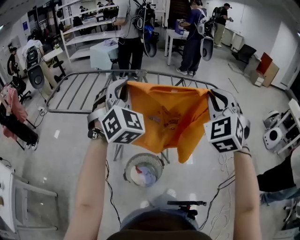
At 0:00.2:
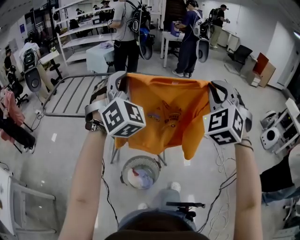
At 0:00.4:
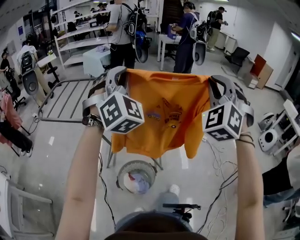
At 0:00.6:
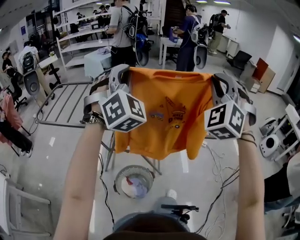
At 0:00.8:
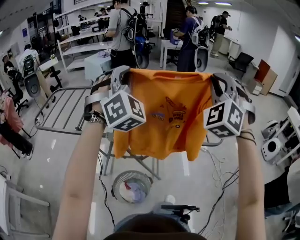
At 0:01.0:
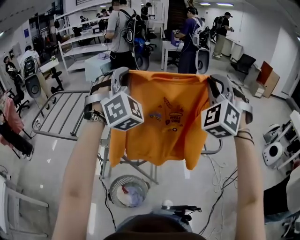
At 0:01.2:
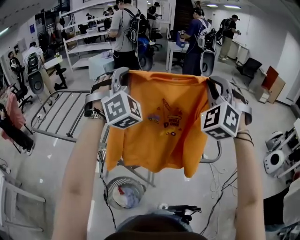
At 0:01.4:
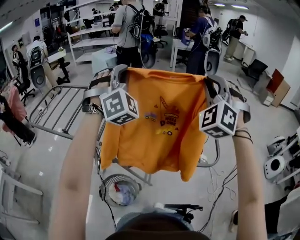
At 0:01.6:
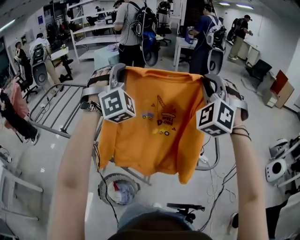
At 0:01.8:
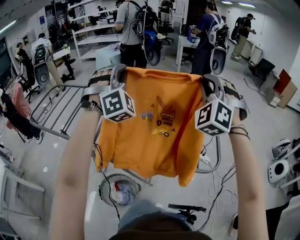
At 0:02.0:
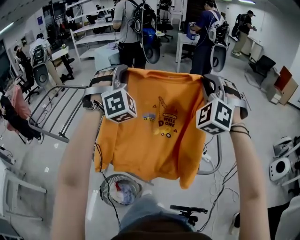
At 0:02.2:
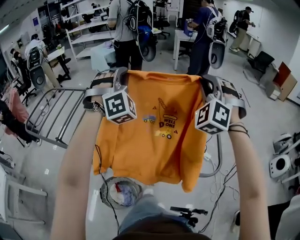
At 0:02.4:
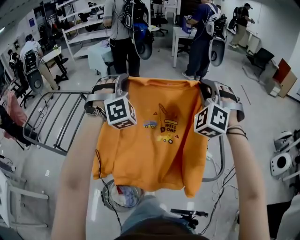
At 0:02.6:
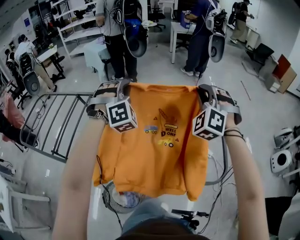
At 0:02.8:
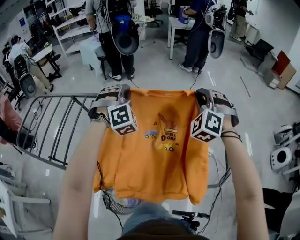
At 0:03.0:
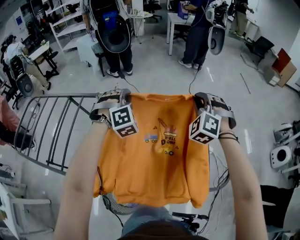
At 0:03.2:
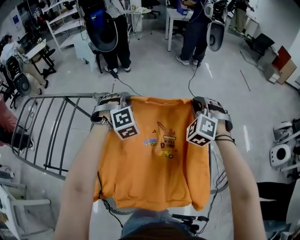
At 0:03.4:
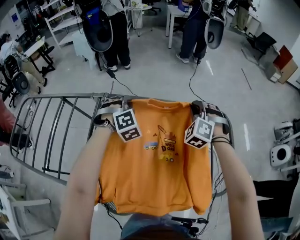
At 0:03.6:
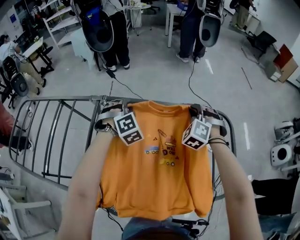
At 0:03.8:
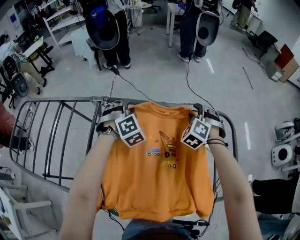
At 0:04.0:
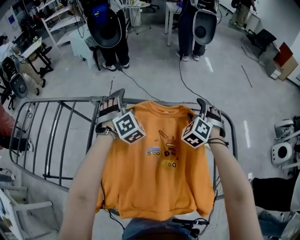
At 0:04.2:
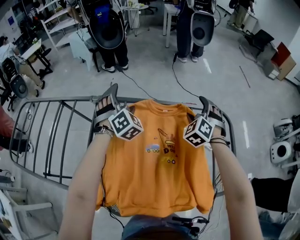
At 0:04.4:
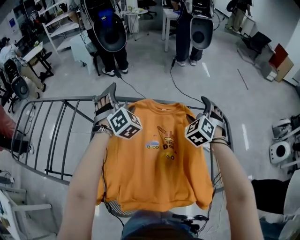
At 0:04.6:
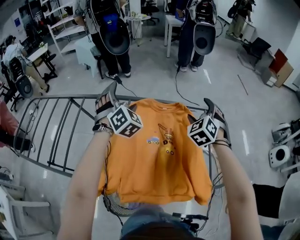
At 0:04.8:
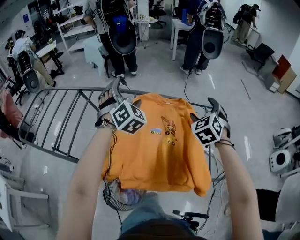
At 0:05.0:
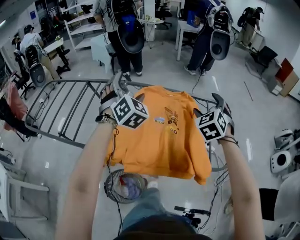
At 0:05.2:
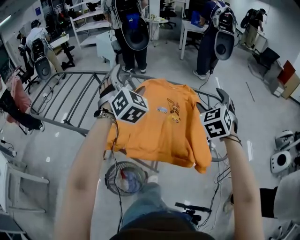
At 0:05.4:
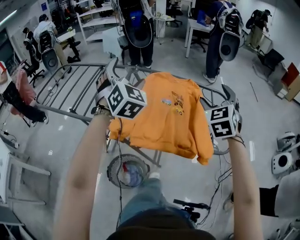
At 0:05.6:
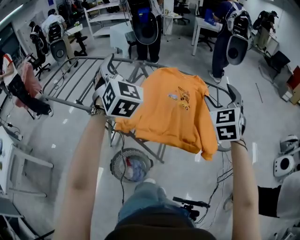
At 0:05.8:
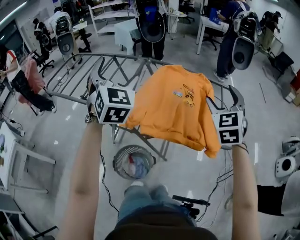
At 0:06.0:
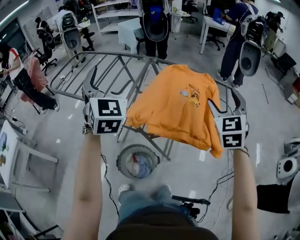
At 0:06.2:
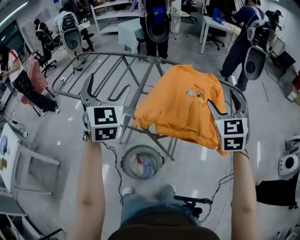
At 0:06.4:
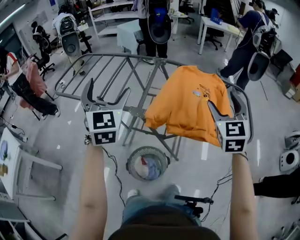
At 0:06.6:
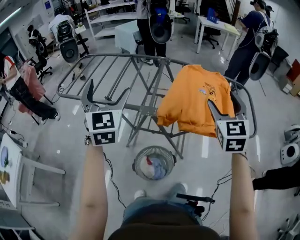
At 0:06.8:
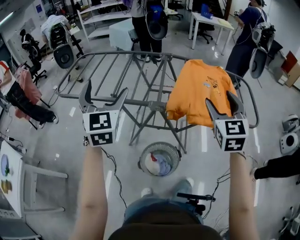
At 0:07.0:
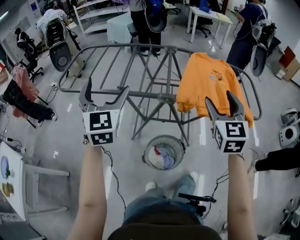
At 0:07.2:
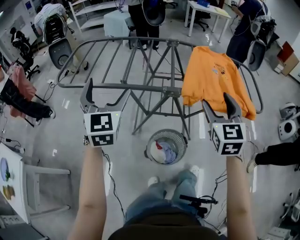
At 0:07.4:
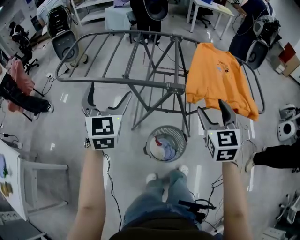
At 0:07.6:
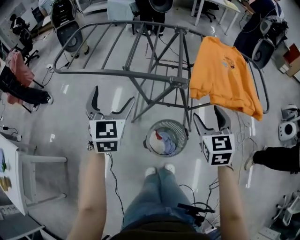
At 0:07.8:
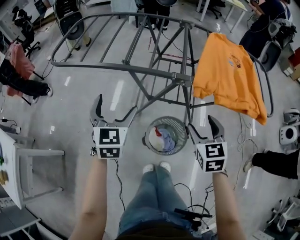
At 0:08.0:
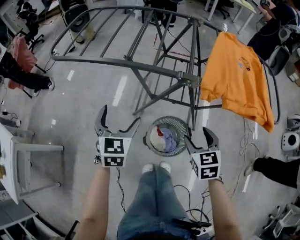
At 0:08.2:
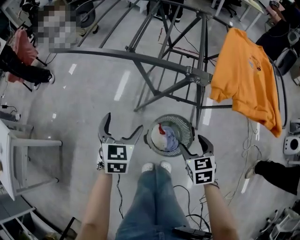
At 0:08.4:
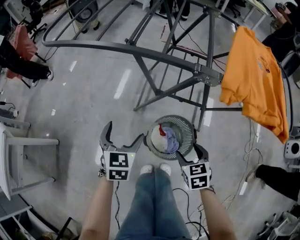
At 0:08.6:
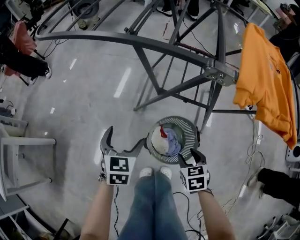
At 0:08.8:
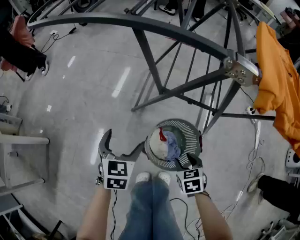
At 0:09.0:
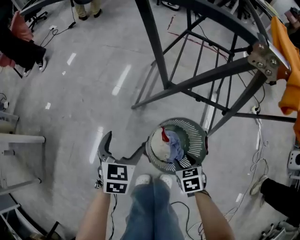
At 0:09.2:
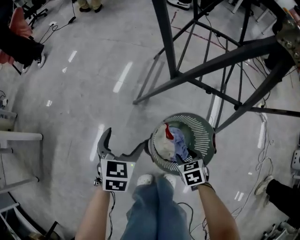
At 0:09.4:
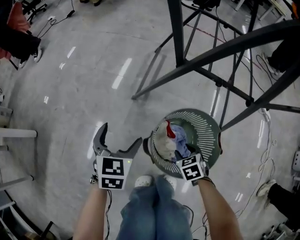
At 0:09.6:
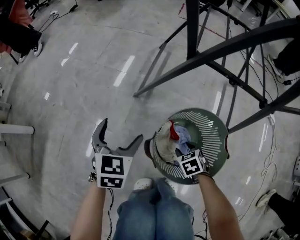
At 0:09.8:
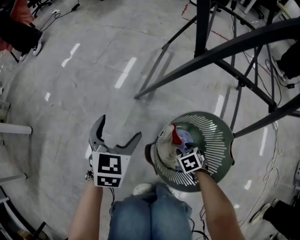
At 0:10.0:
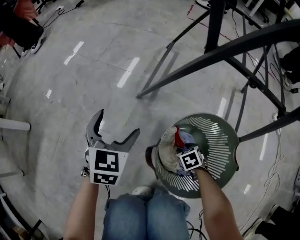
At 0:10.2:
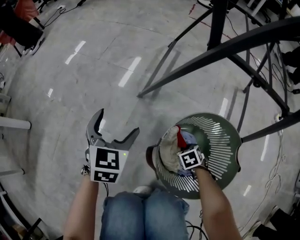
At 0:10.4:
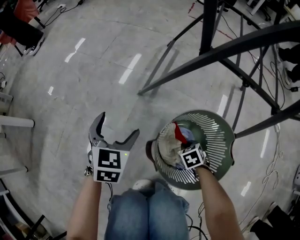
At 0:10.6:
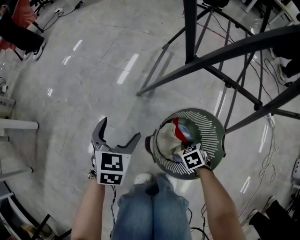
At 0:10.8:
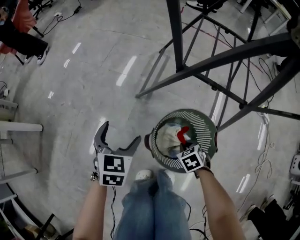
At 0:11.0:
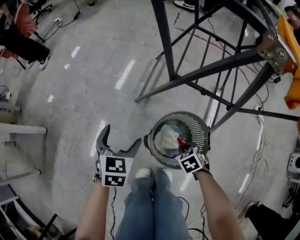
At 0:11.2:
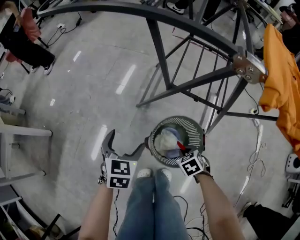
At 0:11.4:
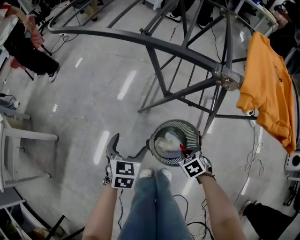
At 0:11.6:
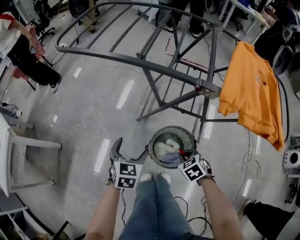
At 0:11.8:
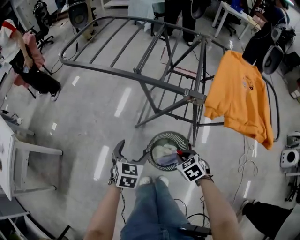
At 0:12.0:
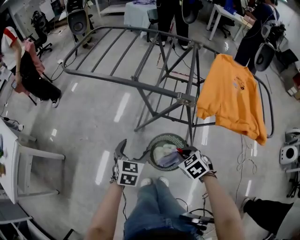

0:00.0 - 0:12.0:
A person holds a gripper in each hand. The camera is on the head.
0:00.0 - 0:01.6: The two grippers go approximately 35 cm forward and to the right. The left gripper swivels approximately 30 degrees. The right gripper turns by about 20 degrees.
0:01.6 - 0:03.0: Both grippers move downward and forward, roughly 30 cm. The left gripper tilts its fingers some 30 degrees downward, while the right gripper changes its angle by some 20 degrees.
0:03.0 - 0:04.4: The right gripper travels downward by approximately 10 cm, turns by some 20 degrees, and opens up; the left gripper goes downward and returns, approximately 10 cm each way, swivels about 20 degrees, and opens its fingers.
0:04.4 - 0:06.0: The right gripper goes approximately 35 cm backward and upward, and changes its angle by some 30 degrees. Meanwhile the left gripper shifts about 50 cm backward, upward and to the left, and swivels roughly 40 degrees.
0:06.0 - 0:07.6: The right gripper shifts approximately 40 cm to the left, downward and backward, and changes its angle by some 20 degrees. Meanwhile the left gripper moves to the left and downward, some 35 cm, and rotates some 20 degrees.
0:07.6 - 0:09.0: Both grippers travel together downward, approximately 50 cm. The left gripper turns by roughly 30 degrees, while the right gripper tilts its fingers roughly 40 degrees downward.
0:09.0 - 0:10.4: The left gripper travels downward by some 20 cm. The right gripper moves downward, roughly 30 cm, and closes its fingers.
0:10.4 - 0:12.0: Both grippers travel together upward, about 50 cm.

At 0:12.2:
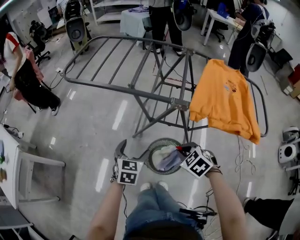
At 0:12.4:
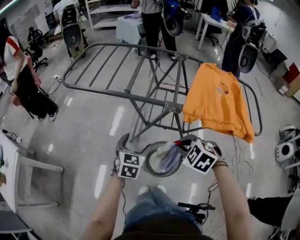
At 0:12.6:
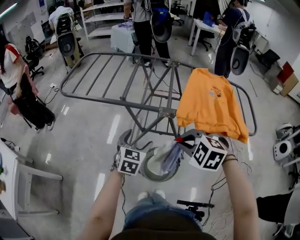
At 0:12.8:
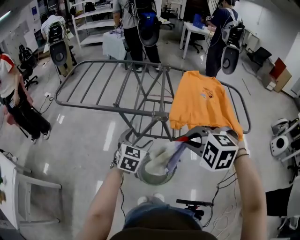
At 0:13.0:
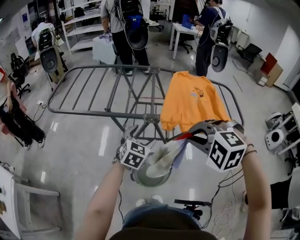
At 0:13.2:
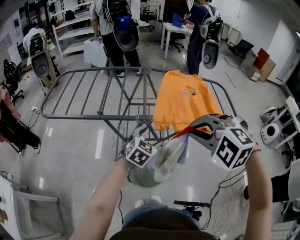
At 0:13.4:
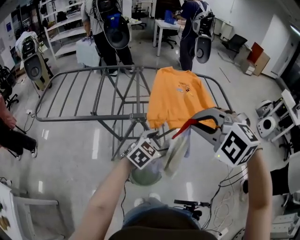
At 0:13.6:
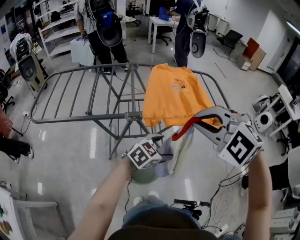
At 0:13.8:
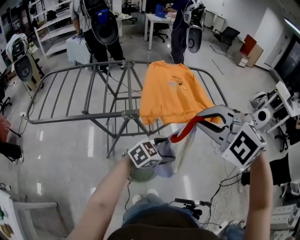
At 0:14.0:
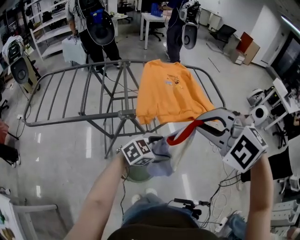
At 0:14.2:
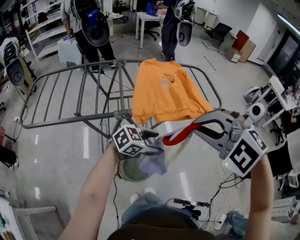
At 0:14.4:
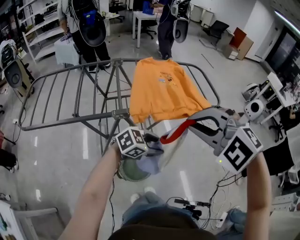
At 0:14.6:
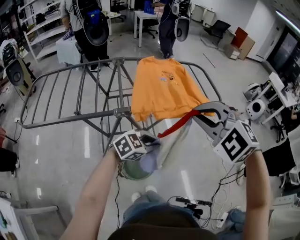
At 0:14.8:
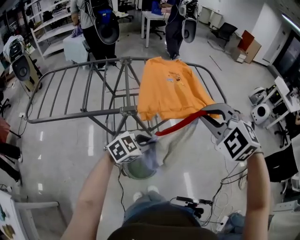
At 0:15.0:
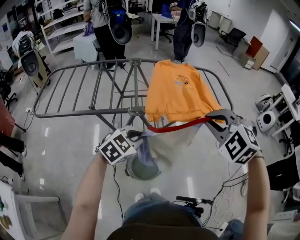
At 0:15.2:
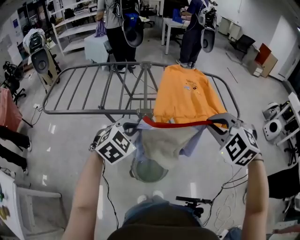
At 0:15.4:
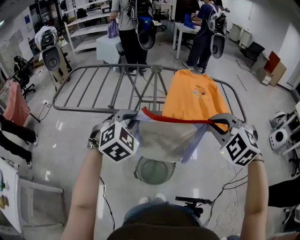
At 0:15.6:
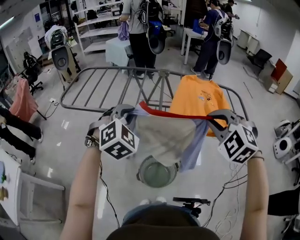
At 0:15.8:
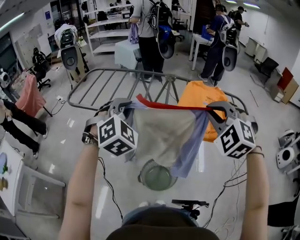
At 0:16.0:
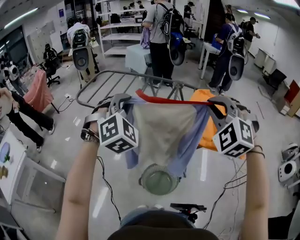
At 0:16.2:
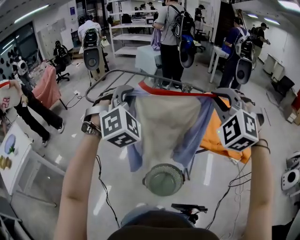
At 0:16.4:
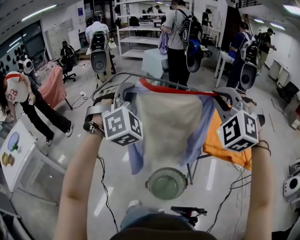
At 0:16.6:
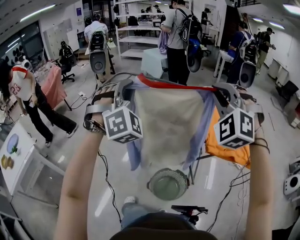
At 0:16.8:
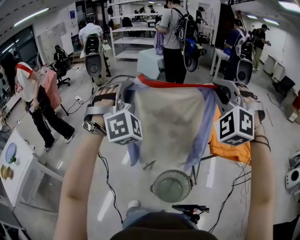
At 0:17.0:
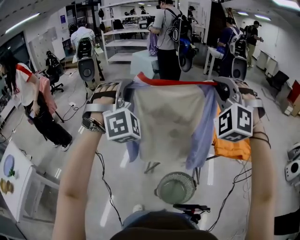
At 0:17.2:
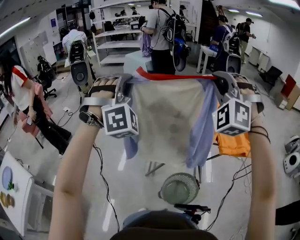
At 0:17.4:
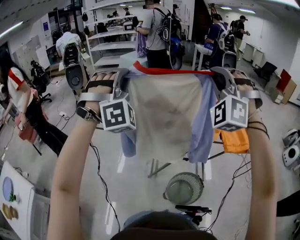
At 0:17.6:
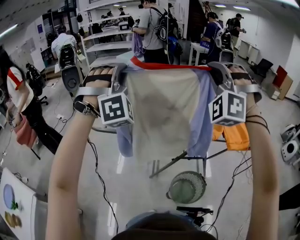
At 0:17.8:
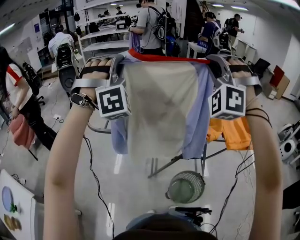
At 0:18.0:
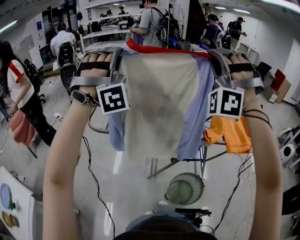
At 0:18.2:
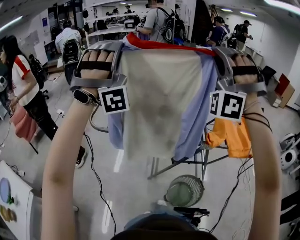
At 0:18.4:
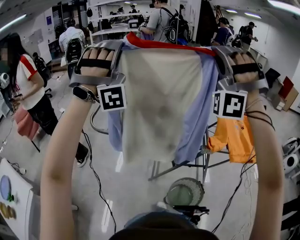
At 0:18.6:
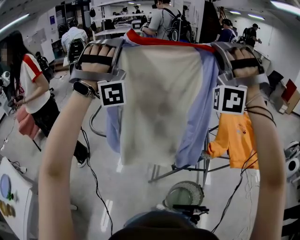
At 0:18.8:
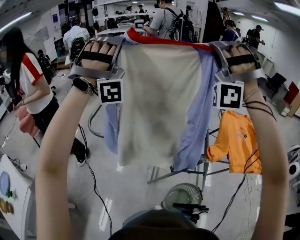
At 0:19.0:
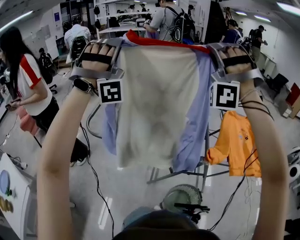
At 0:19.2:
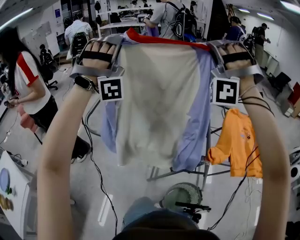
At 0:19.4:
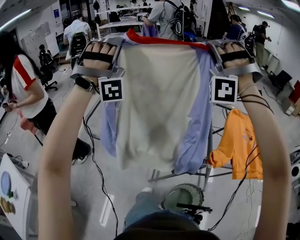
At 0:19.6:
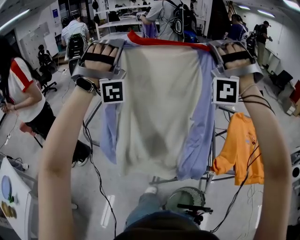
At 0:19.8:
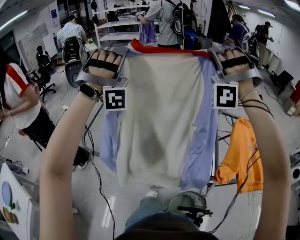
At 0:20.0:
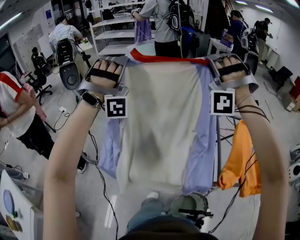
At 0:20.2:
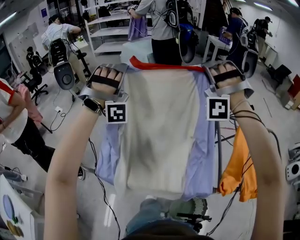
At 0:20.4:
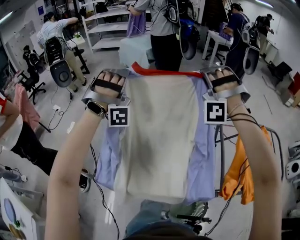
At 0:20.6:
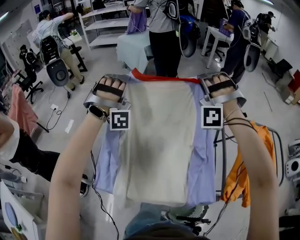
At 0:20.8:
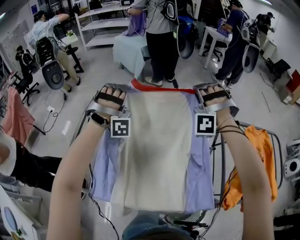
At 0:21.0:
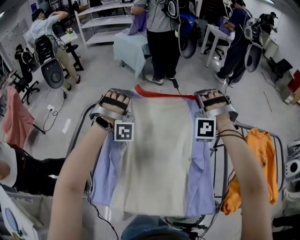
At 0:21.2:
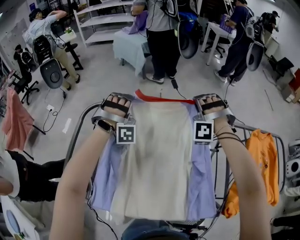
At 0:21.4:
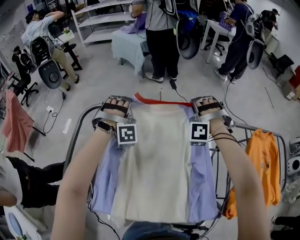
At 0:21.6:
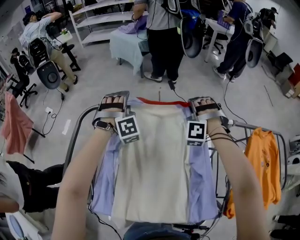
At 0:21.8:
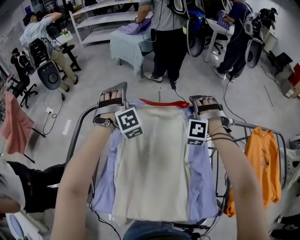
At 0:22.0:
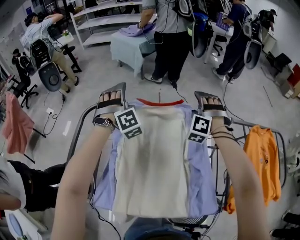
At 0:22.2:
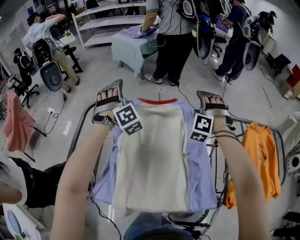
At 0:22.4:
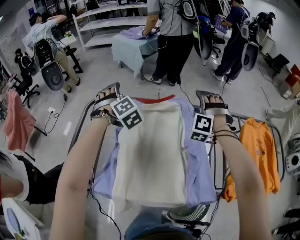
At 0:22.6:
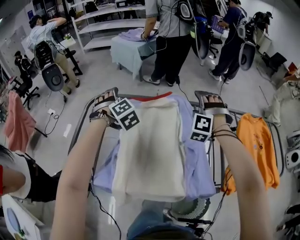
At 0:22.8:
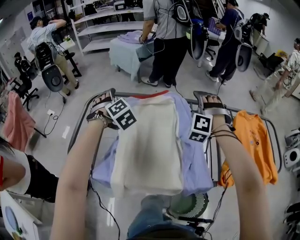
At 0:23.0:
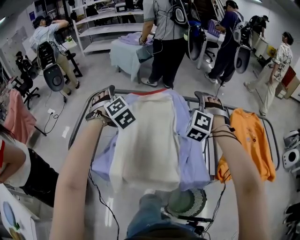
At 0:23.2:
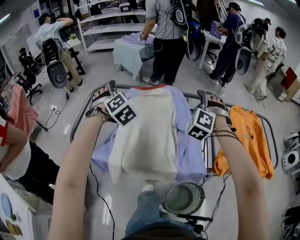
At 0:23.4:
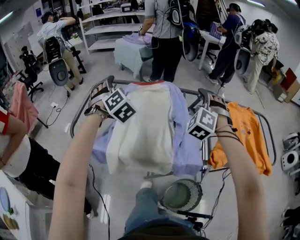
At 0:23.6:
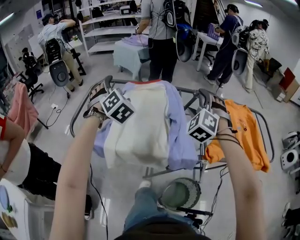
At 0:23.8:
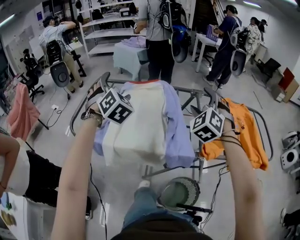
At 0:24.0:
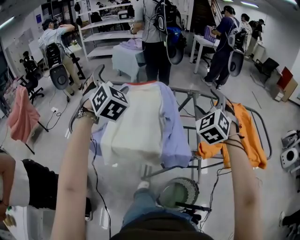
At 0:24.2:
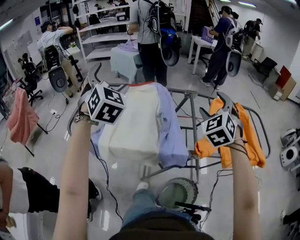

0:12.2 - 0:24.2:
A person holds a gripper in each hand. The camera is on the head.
0:12.2 - 0:13.8: The left gripper changes place by roughly 30 cm, and swivels roughly 70 degrees. Meanwhile the right gripper is displaced upward by about 30 cm, and swivels some 40 degrees.
0:13.8 - 0:15.2: The left gripper ends up some 20 cm from where it was, turns by about 40 degrees, and closes. Meanwhile the right gripper ends up some 5 cm from where it was.
0:15.2 - 0:16.6: The two grippers go roughly 25 cm upward. The right gripper angles its fingers upward, by approximately 30 degrees, while the left gripper angles its fingers upward, by roughly 40 degrees.
0:16.6 - 0:18.2: The left gripper moves forward, to the left and upward, some 25 cm, and tilts its fingers about 30 degrees upward, while the right gripper shifts roughly 20 cm to the left, forward and upward, and angles its fingers upward, by some 30 degrees.
0:18.2 - 0:19.8: Both grippers move forward, about 20 cm.
0:19.8 - 0:21.2: The grippers both shift downward and forward by roughly 35 cm. The right gripper tilts its fingers approximately 30 degrees downward; the left gripper points its fingers roughly 30 degrees further downward.
0:21.2 - 0:22.6: The two grippers go roughly 10 cm backward. The right gripper opens its fingers. Meanwhile the left gripper points its fingers roughly 30 degrees further downward, and opens up.
0:22.6 - 0:24.2: The left gripper shifts roughly 35 cm backward and upward, and tilts its fingers about 40 degrees upward; the right gripper shifts roughly 35 cm backward, upward and to the right, and twists about 40 degrees clockwise, seen from behind.
